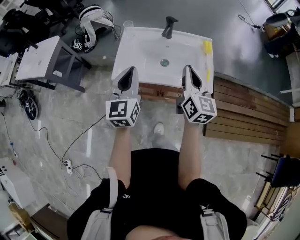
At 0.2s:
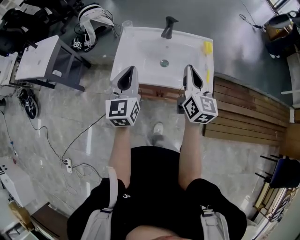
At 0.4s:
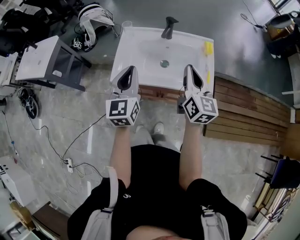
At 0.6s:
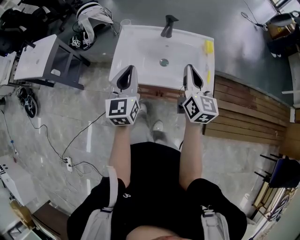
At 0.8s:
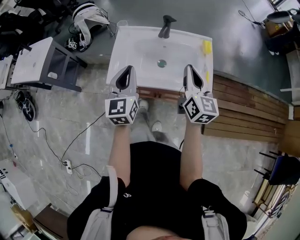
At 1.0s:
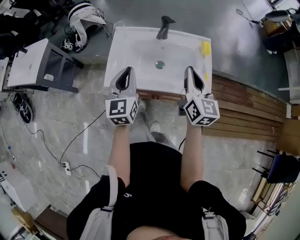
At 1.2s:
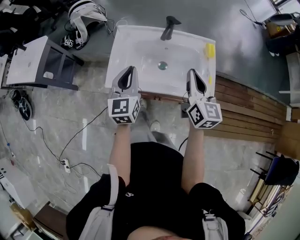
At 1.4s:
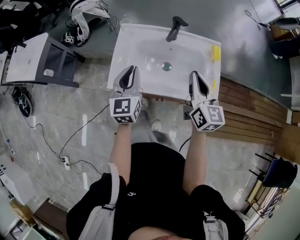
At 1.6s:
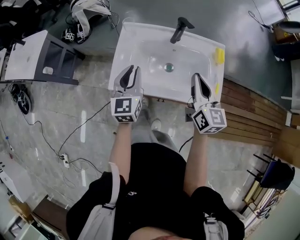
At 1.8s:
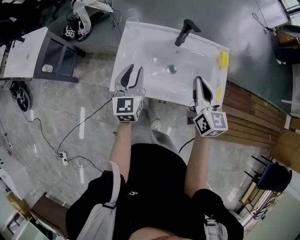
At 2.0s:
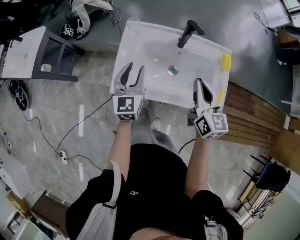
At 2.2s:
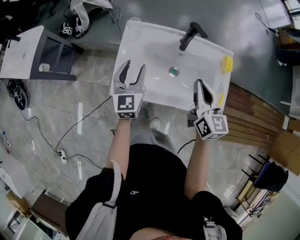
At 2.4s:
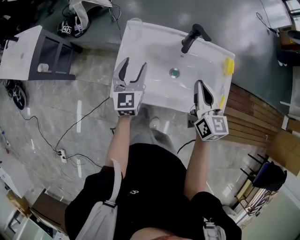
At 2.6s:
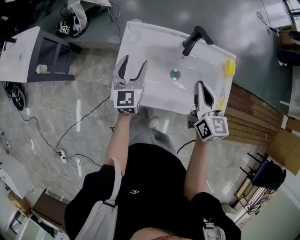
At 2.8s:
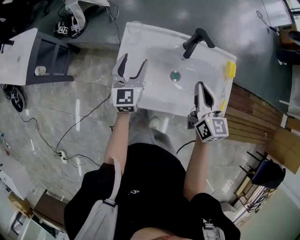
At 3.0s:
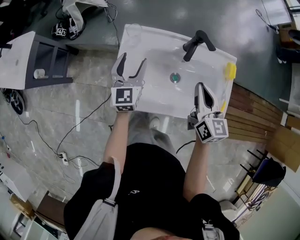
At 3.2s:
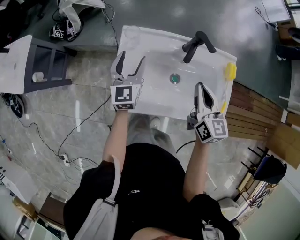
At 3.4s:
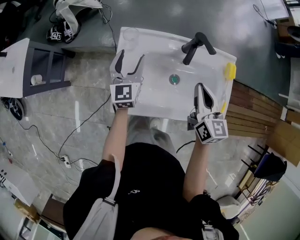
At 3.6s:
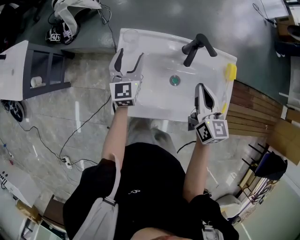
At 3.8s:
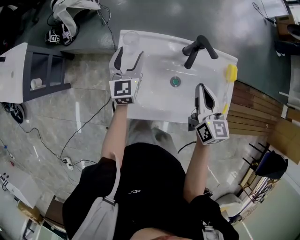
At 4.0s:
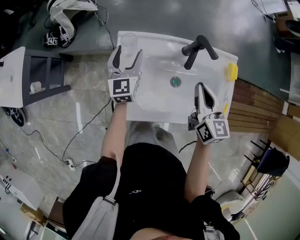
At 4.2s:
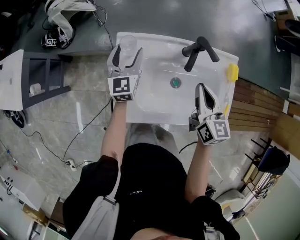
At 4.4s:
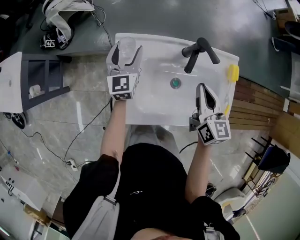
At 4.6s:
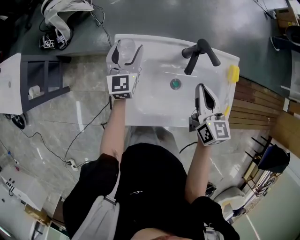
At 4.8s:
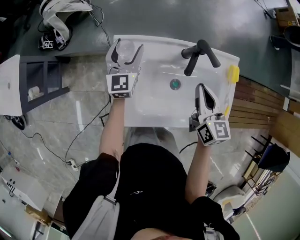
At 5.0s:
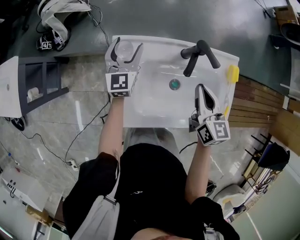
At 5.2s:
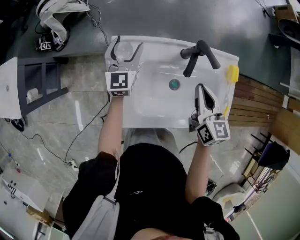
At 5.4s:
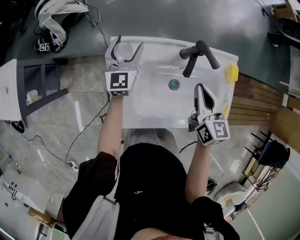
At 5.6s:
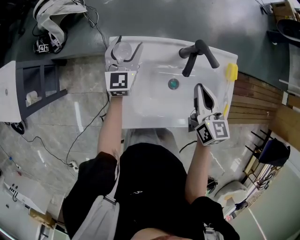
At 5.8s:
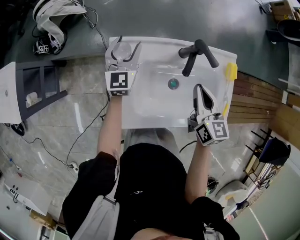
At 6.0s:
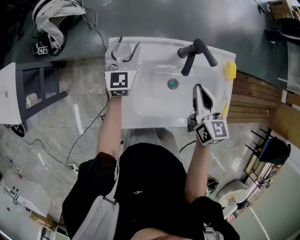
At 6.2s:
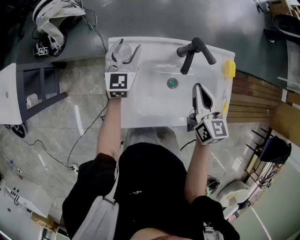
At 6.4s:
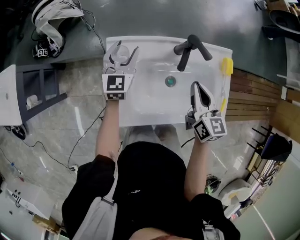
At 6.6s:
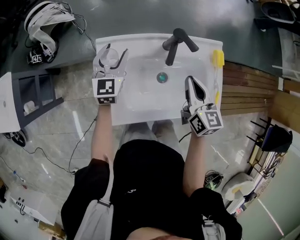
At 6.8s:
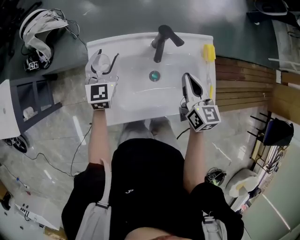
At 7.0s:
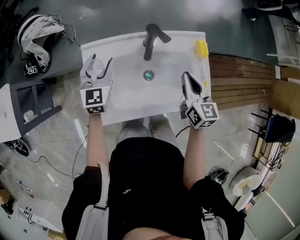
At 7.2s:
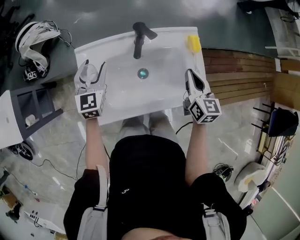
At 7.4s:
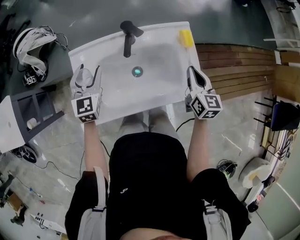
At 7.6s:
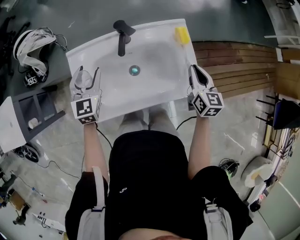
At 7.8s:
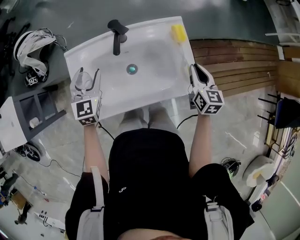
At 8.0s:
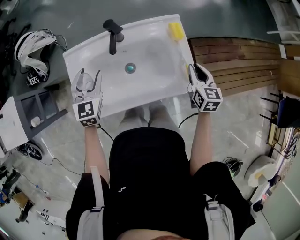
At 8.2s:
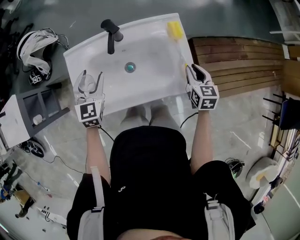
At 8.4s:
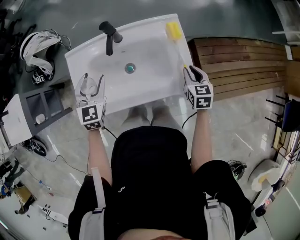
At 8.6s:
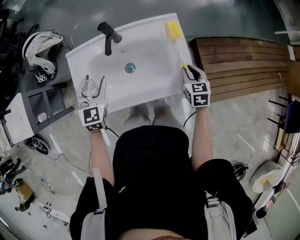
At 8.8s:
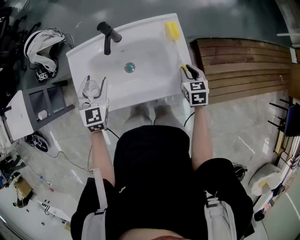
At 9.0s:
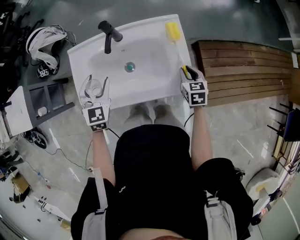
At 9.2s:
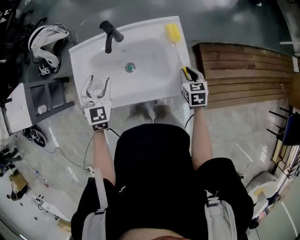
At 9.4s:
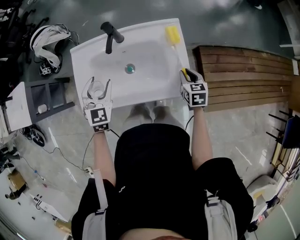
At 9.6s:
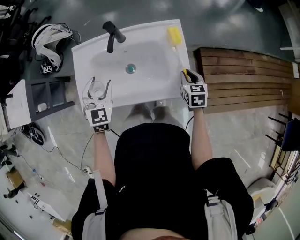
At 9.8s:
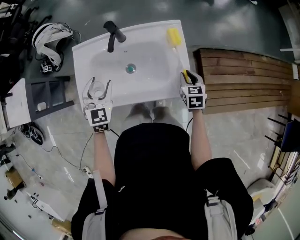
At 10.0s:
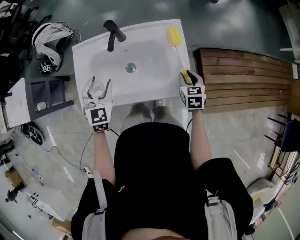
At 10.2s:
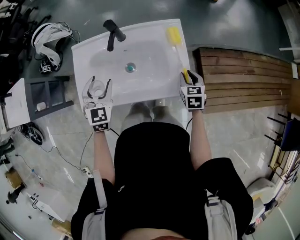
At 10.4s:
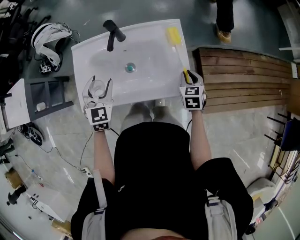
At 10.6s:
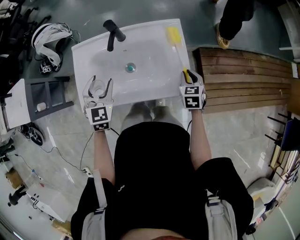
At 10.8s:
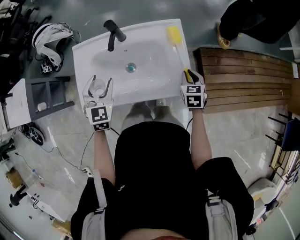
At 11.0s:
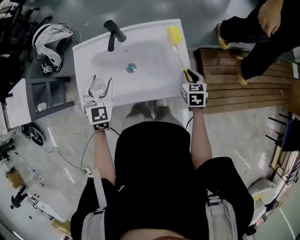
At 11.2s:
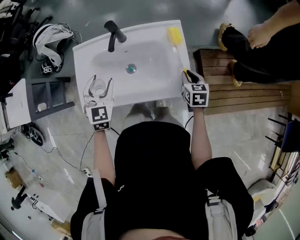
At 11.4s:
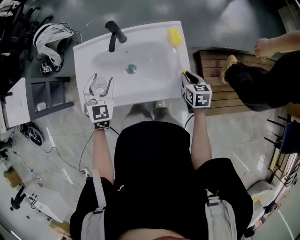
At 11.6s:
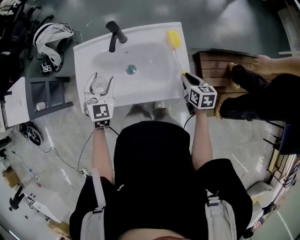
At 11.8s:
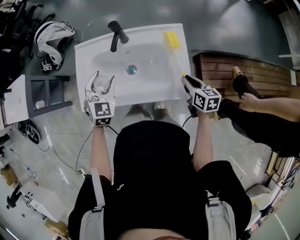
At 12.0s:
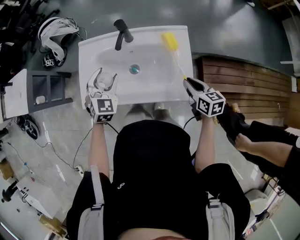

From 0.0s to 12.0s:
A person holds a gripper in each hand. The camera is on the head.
From 0.0s to 1.6s: Both grippers travel together forward and downward, about 15 cm.
From 1.6s to 3.0s: The left gripper travels forward and downward by some 15 cm, and opens; the right gripper moves forward and downward, approximately 10 cm.
From 3.0s to 4.4s: The right gripper ends up roughly 5 cm from where it was, while the left gripper shifts roughly 10 cm forward.
From 4.4s to 6.0s: There are only small adjustments of the grippers.
From 6.0s to 7.6s: The right gripper travels to the right by roughly 20 cm, while the left gripper moves backward, to the right and upward, about 15 cm.
From 7.6s to 9.0s: The left gripper is displaced to the right and backward by roughly 10 cm; the right gripper travels downward by some 10 cm, and changes its angle by roughly 20 degrees.
From 9.0s to 10.4s: The grippers stay close to where they were, moving slightly.
From 10.4s to 12.0s: The right gripper changes place by roughly 5 cm, and turns by approximately 30 degrees.

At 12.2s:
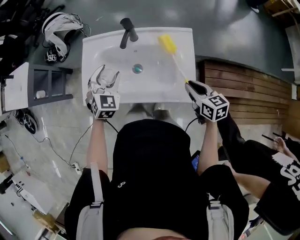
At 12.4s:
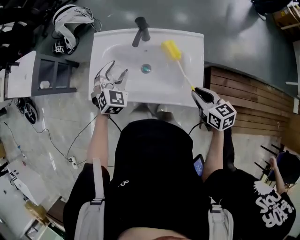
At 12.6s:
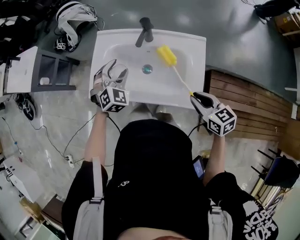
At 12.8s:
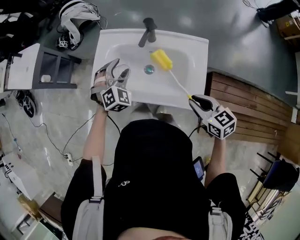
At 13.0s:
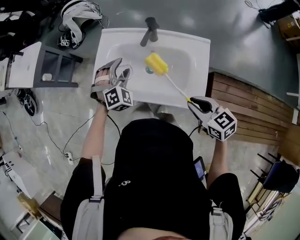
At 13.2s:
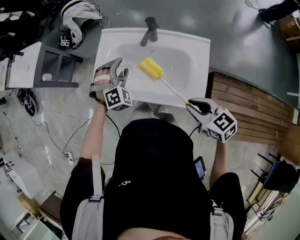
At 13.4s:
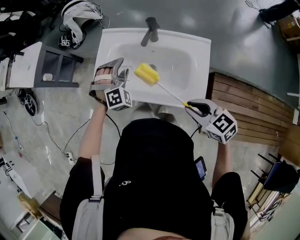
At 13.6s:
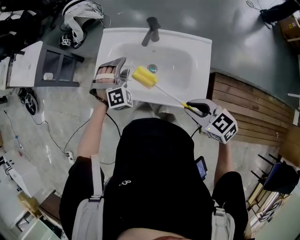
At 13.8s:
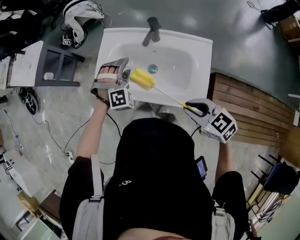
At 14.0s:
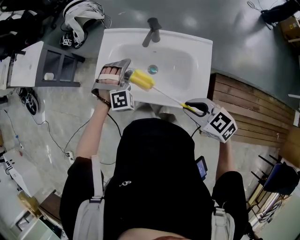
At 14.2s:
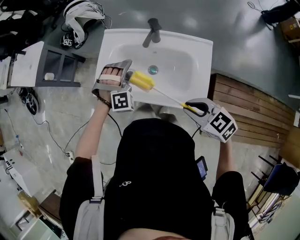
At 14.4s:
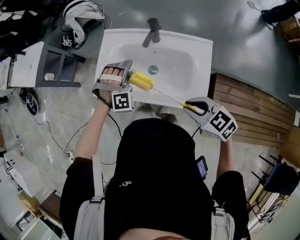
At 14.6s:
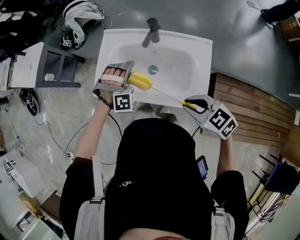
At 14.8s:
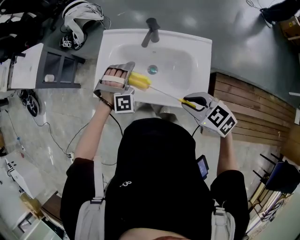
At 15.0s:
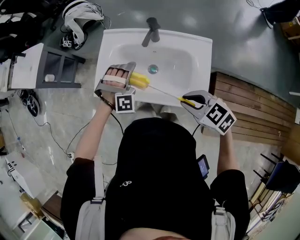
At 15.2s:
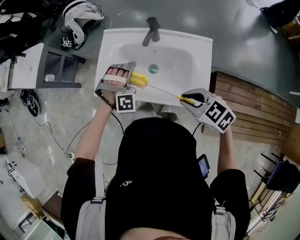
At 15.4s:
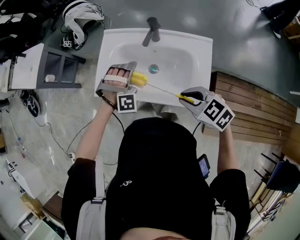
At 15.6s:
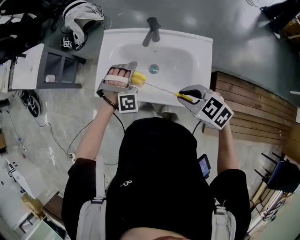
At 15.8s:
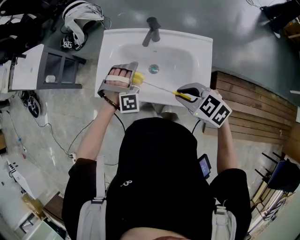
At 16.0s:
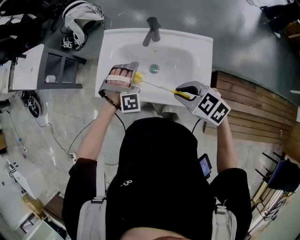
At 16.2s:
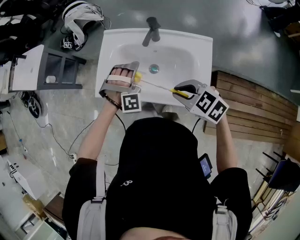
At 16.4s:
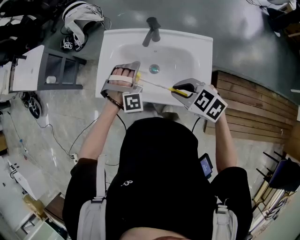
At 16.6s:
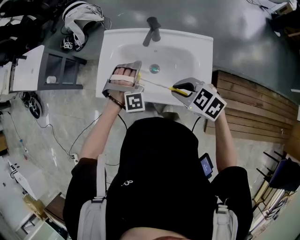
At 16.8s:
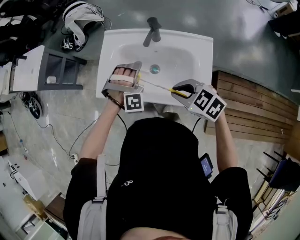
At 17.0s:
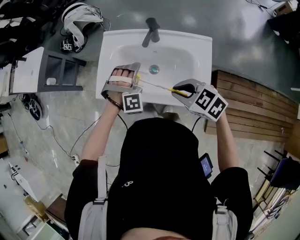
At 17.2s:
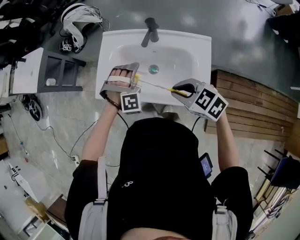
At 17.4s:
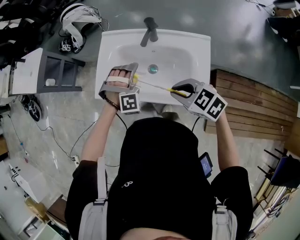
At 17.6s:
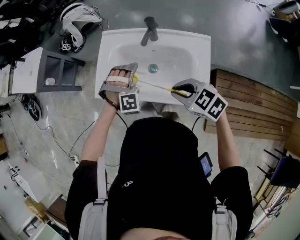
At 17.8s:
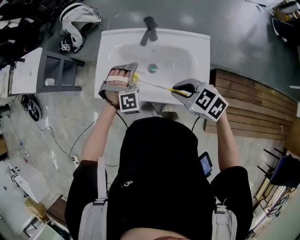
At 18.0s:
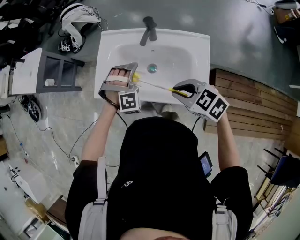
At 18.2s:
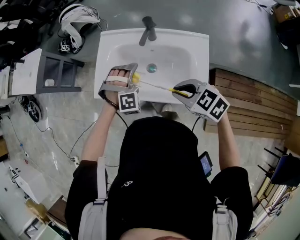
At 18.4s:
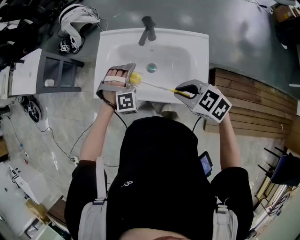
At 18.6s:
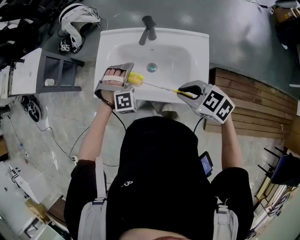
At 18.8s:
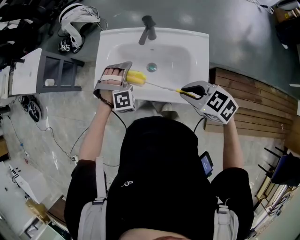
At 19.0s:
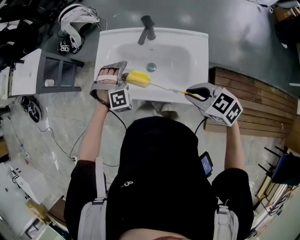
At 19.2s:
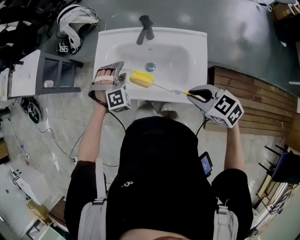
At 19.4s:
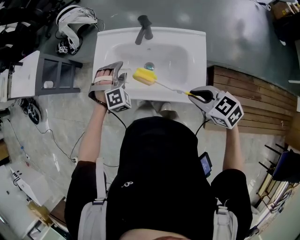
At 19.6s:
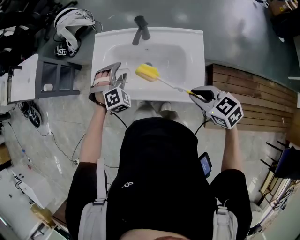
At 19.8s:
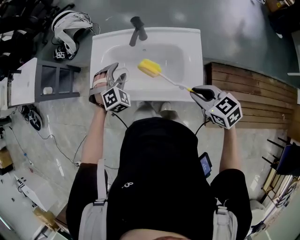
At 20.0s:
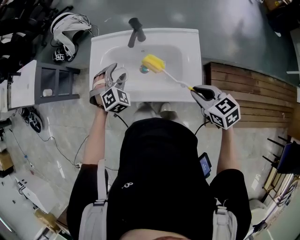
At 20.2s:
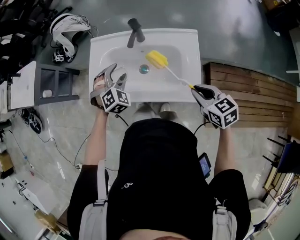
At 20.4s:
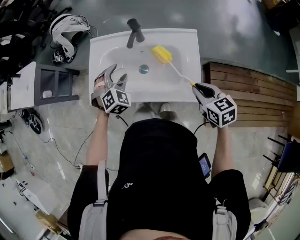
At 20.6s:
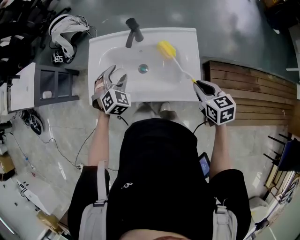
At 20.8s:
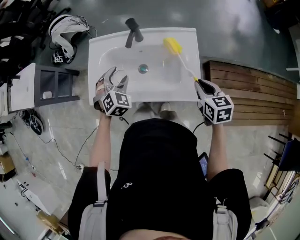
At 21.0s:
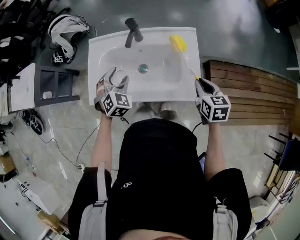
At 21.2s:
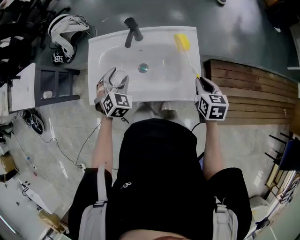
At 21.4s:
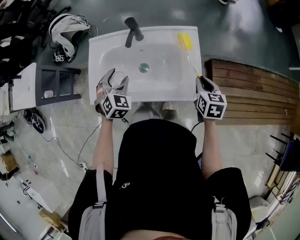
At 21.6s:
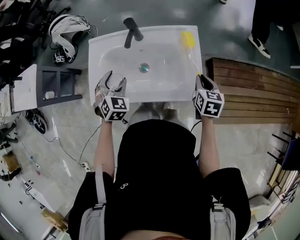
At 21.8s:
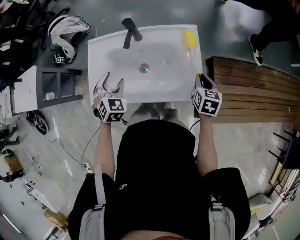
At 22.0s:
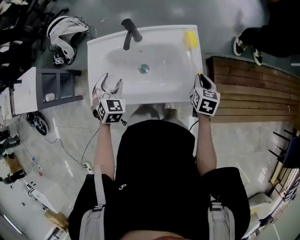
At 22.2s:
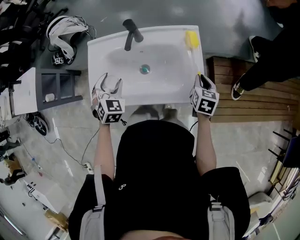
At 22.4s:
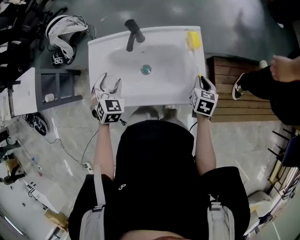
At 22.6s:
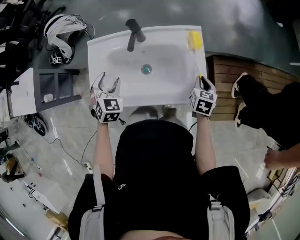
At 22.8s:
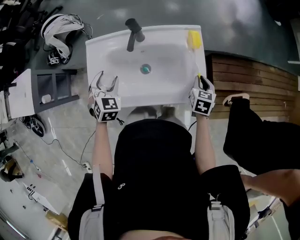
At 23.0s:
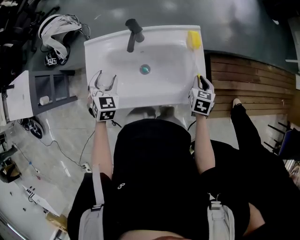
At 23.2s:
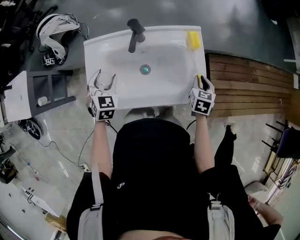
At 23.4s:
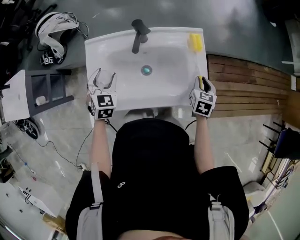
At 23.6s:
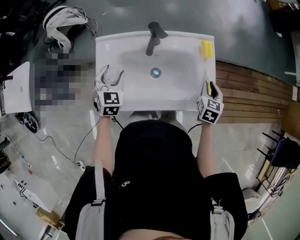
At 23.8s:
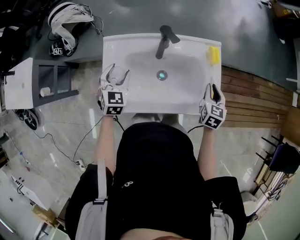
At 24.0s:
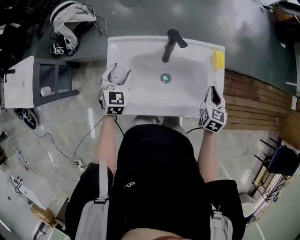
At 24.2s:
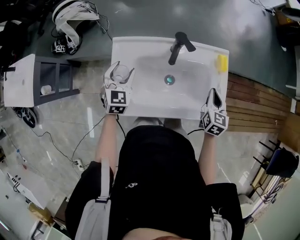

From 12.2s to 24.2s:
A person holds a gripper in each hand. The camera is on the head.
From 12.2s to 13.8s: The right gripper travels to the left and upward by roughly 15 cm, and changes its angle by about 40 degrees, while the left gripper rotates around the line of its fingers by approximately 40 degrees, clockwise from behind.
From 13.8s to 15.2s: There are only small adjustments of the grippers.
From 15.2s to 18.2s: The grippers stay close to where they were, moving slightly.
From 18.2s to 19.8s: The left gripper turns by about 20 degrees. The right gripper travels to the right and backward by about 10 cm, and changes its angle by roughly 20 degrees.
From 19.8s to 21.2s: The left gripper turns by about 20 degrees. The right gripper travels to the right and downward by about 10 cm, and changes its angle by approximately 40 degrees.
From 21.2s to 22.6s: The left gripper goes roughly 5 cm to the left; the right gripper moves downward, some 5 cm.
From 22.6s to 24.2s: The right gripper moves to the left and upward, about 10 cm. Meanwhile the left gripper moves to the left and forward, roughly 10 cm, and changes its angle by roughly 20 degrees.
